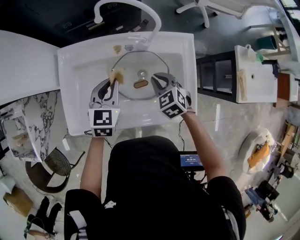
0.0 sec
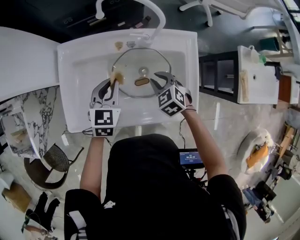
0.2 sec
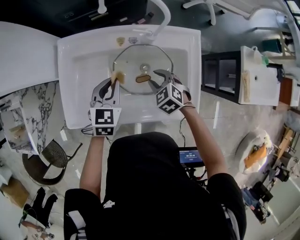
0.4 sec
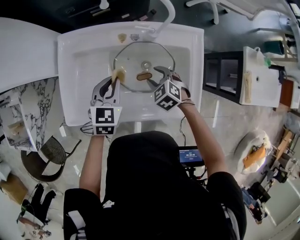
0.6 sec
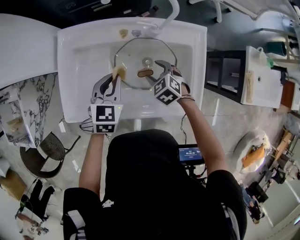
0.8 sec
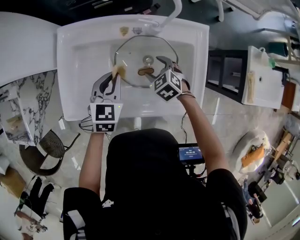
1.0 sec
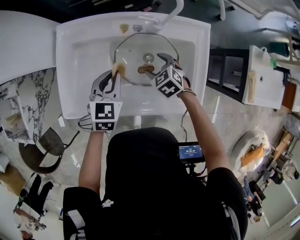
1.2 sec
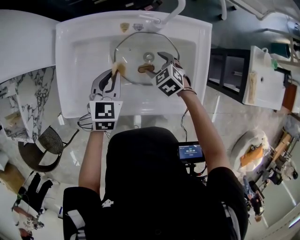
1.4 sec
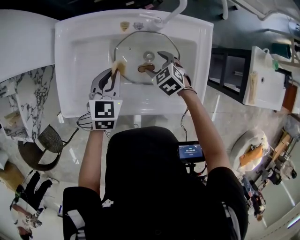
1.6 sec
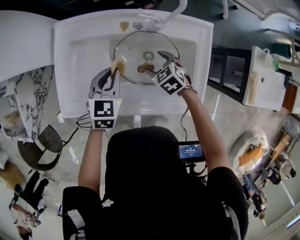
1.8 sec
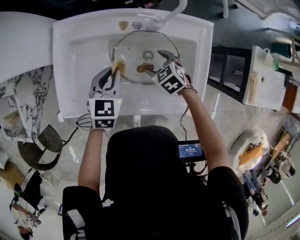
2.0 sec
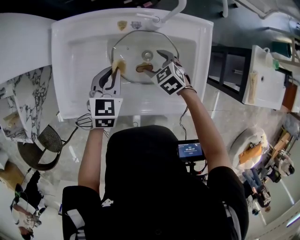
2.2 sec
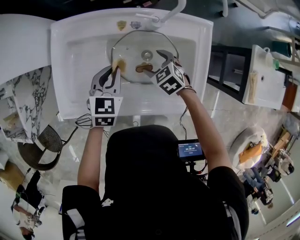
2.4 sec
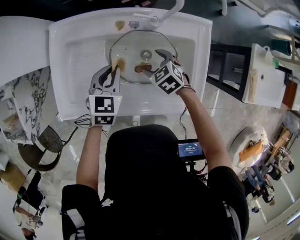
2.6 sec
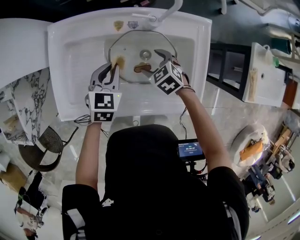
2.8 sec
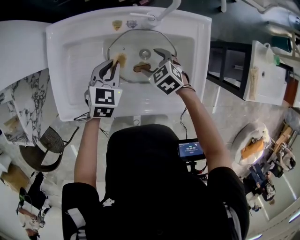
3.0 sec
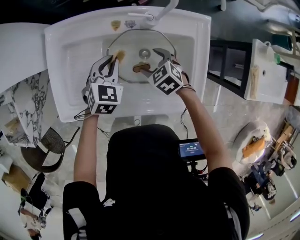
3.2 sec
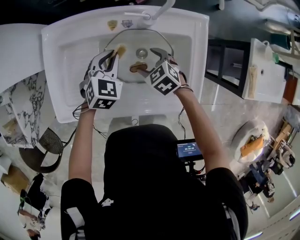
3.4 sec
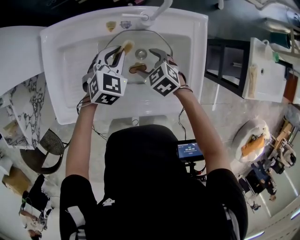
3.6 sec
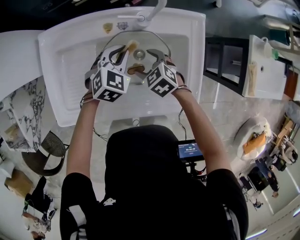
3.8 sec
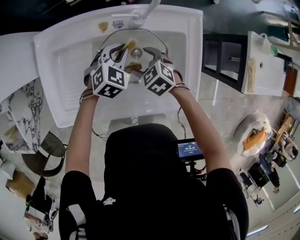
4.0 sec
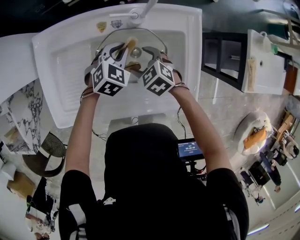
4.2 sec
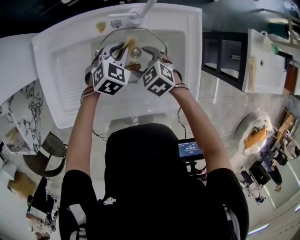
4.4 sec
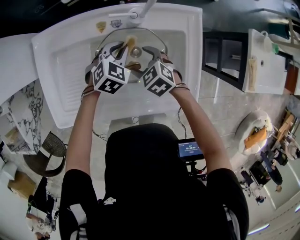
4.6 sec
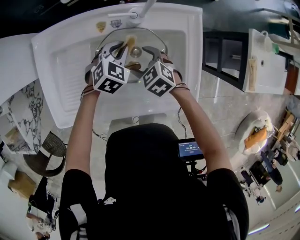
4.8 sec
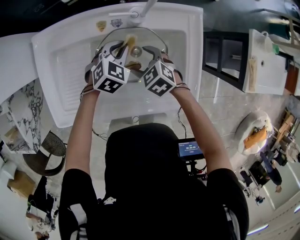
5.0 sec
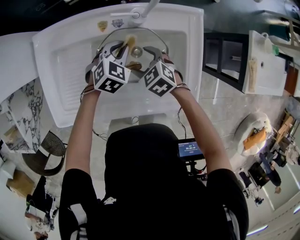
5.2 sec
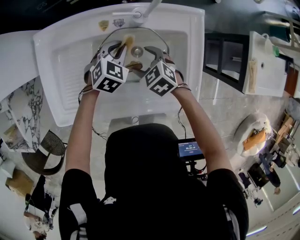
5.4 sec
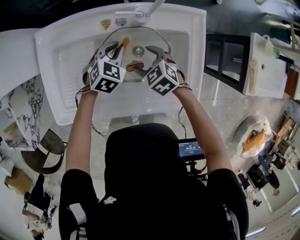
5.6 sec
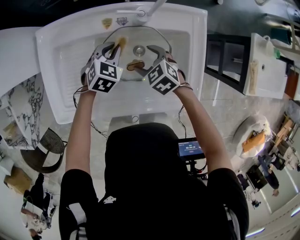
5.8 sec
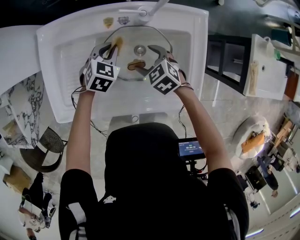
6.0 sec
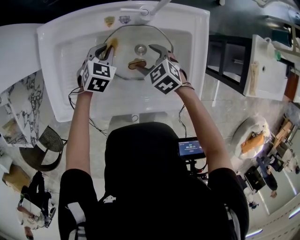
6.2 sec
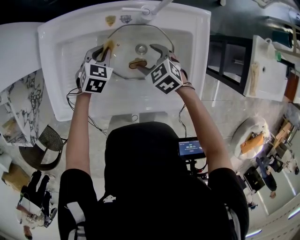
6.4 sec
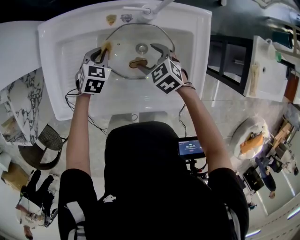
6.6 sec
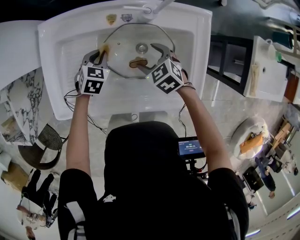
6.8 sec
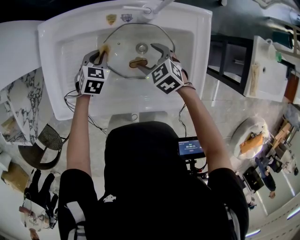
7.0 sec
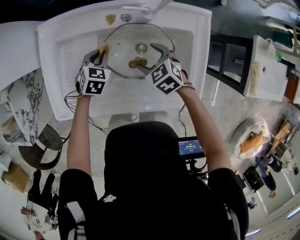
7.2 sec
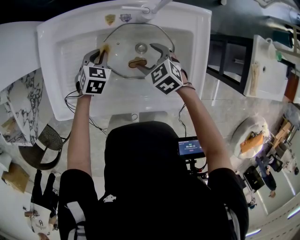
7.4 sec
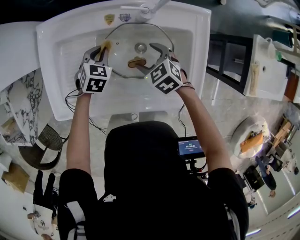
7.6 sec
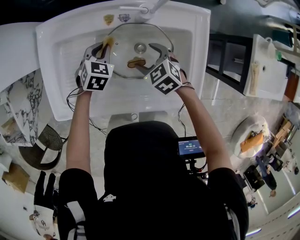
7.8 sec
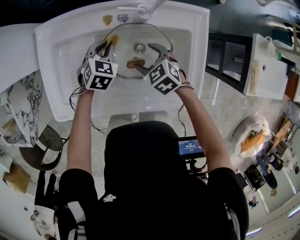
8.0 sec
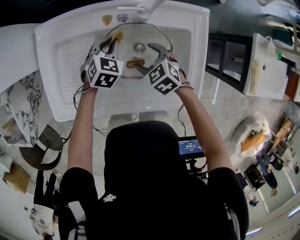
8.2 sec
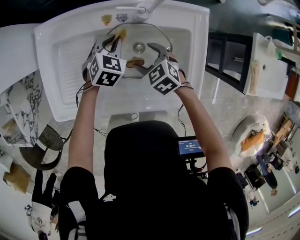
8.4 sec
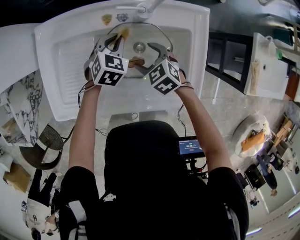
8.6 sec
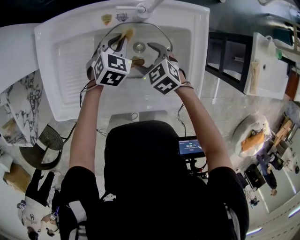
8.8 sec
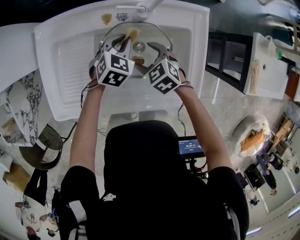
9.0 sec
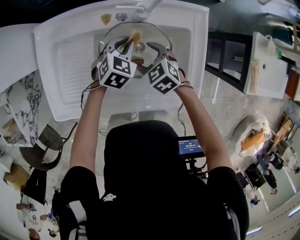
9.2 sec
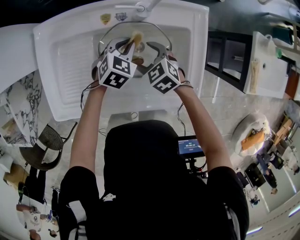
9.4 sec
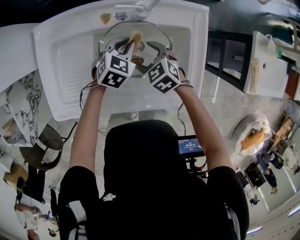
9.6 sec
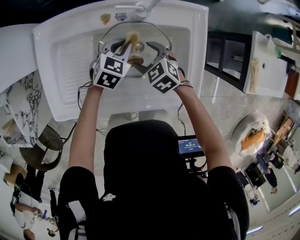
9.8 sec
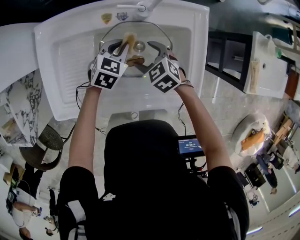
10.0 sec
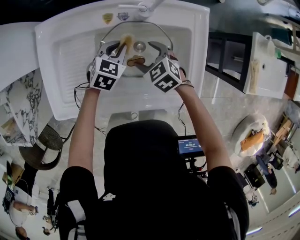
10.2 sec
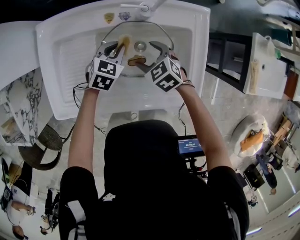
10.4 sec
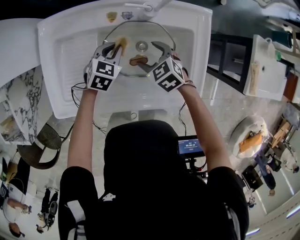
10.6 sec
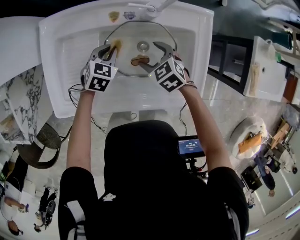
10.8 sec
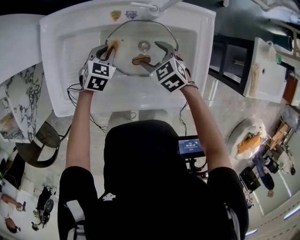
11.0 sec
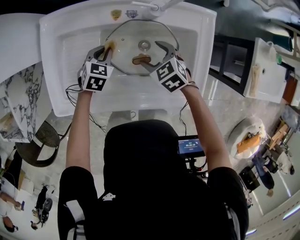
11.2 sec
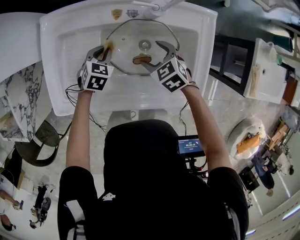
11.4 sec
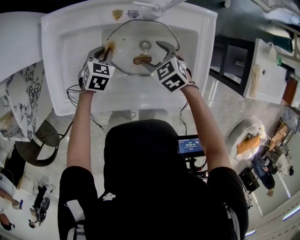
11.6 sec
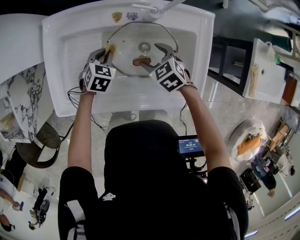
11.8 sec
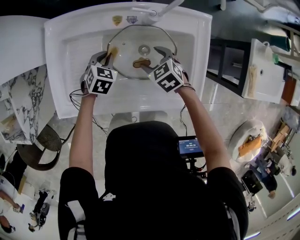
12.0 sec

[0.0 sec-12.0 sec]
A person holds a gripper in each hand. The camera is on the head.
0.0 sec to 1.6 sec: The right gripper goes roughly 10 cm downward, and opens. The left gripper shifts some 5 cm downward.
1.6 sec to 3.0 sec: The left gripper changes place by about 5 cm.
3.0 sec to 4.4 sec: The left gripper shifts about 10 cm to the right, and turns by roughly 20 degrees.
4.4 sec to 6.0 sec: The left gripper moves to the left, about 5 cm.
6.0 sec to 7.6 sec: The left gripper is displaced to the left by some 5 cm.
7.6 sec to 9.0 sec: The left gripper shifts about 10 cm to the right.
9.0 sec to 10.4 sec: There are only small adjustments of the grippers.
10.4 sec to 12.0 sec: The left gripper travels to the left by approximately 10 cm.

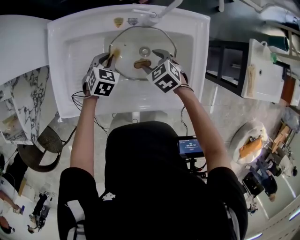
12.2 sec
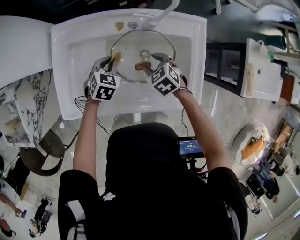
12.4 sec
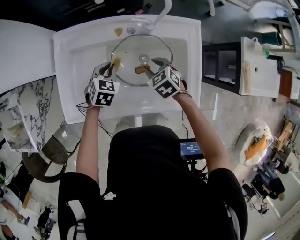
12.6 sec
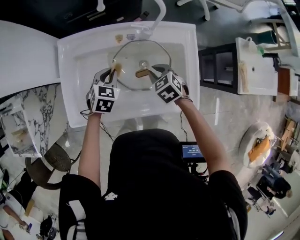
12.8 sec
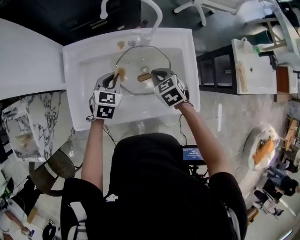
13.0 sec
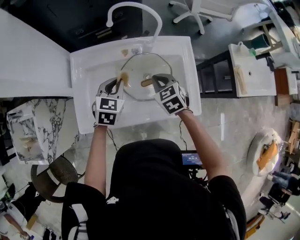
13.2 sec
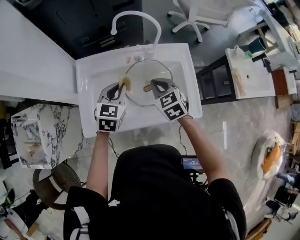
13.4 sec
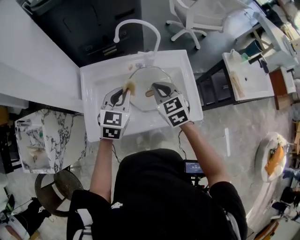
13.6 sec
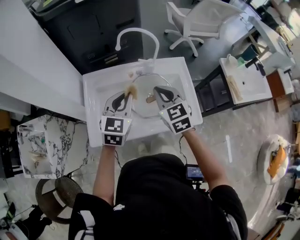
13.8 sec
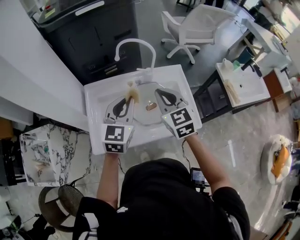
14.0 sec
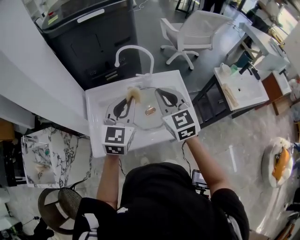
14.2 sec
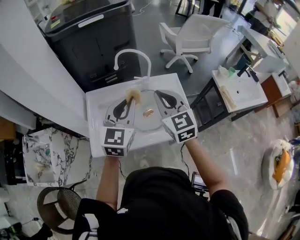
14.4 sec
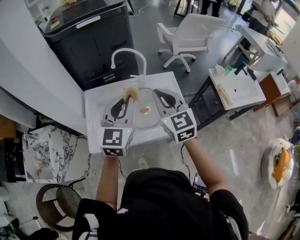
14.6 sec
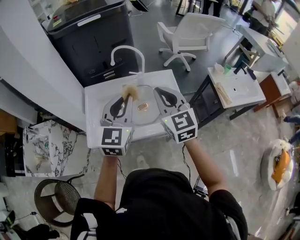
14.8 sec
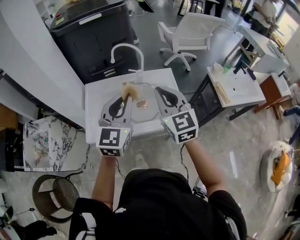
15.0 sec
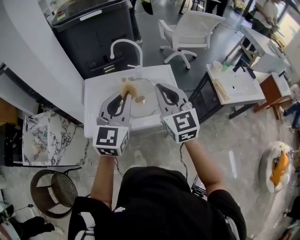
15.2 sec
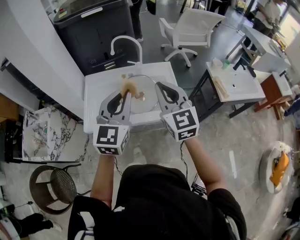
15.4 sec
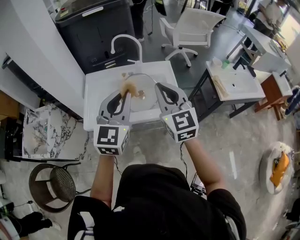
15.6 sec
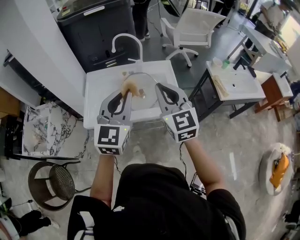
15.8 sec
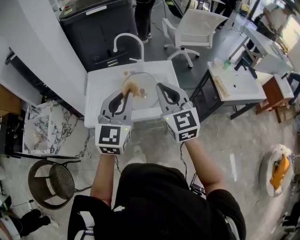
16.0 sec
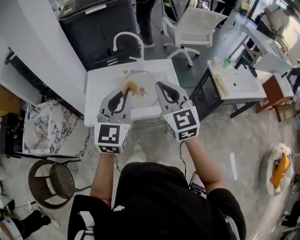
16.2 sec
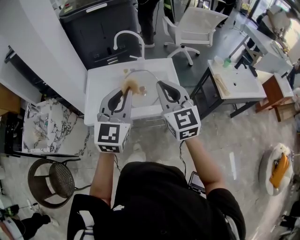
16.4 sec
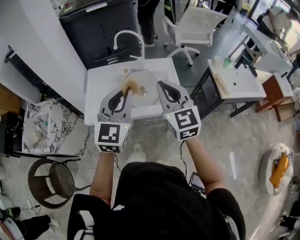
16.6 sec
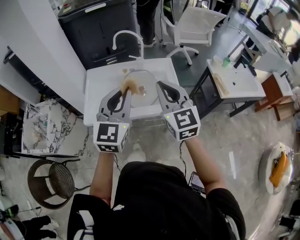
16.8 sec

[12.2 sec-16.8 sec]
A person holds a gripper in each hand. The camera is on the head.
12.2 sec to 13.8 sec: The grippers both shift upward by approximately 30 cm. The left gripper tilts its fingers roughly 40 degrees upward, while the right gripper tips its fingers upward by roughly 40 degrees, and closes its fingers.
13.8 sec to 15.2 sec: Both grippers move upward, backward and to the right, approximately 25 cm. The right gripper rotates approximately 20 degrees.
15.2 sec to 16.8 sec: Both grippers travel together backward, about 5 cm.

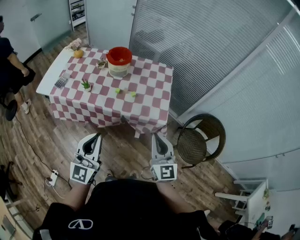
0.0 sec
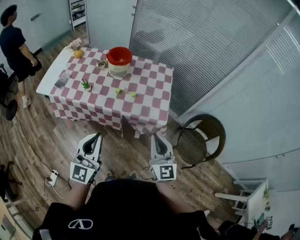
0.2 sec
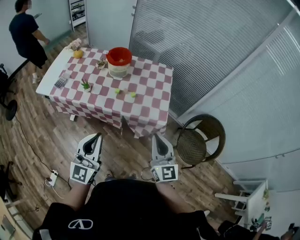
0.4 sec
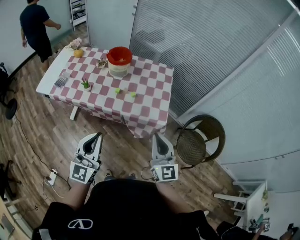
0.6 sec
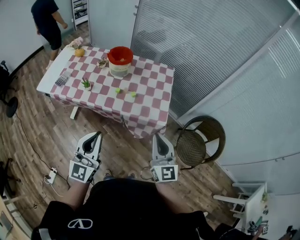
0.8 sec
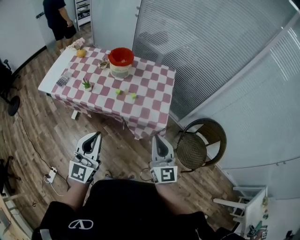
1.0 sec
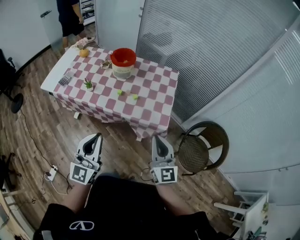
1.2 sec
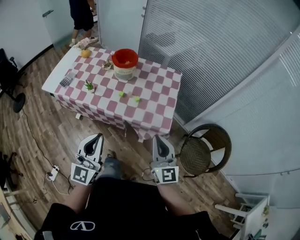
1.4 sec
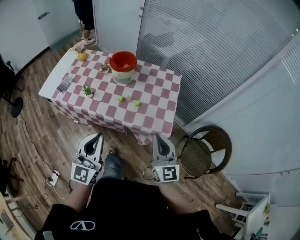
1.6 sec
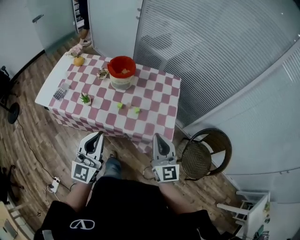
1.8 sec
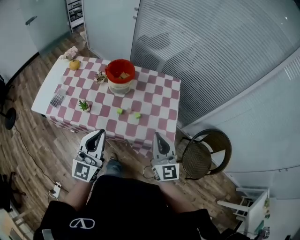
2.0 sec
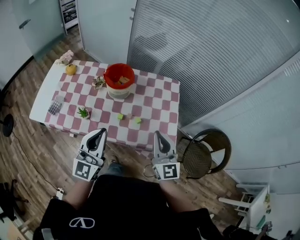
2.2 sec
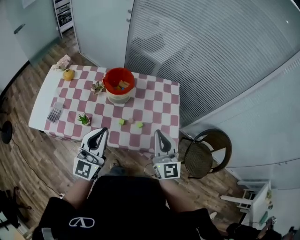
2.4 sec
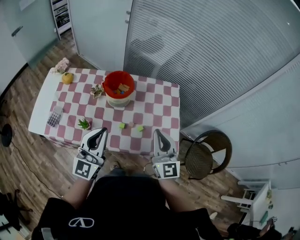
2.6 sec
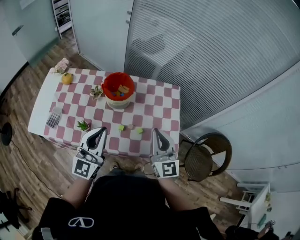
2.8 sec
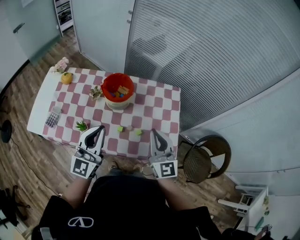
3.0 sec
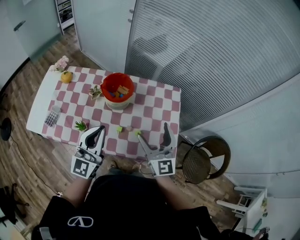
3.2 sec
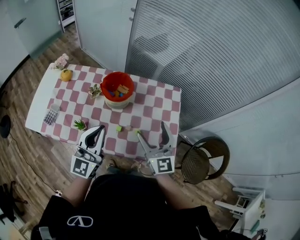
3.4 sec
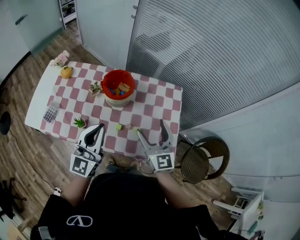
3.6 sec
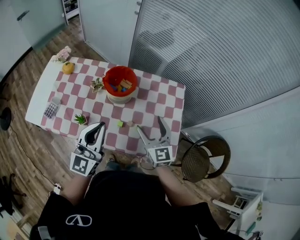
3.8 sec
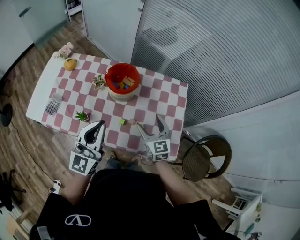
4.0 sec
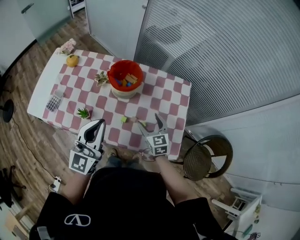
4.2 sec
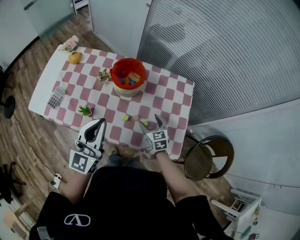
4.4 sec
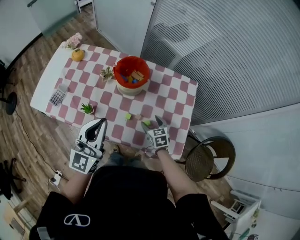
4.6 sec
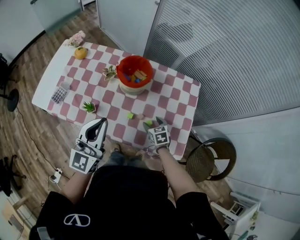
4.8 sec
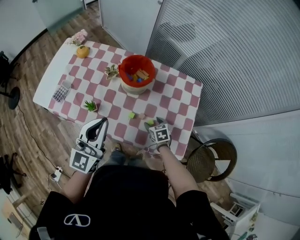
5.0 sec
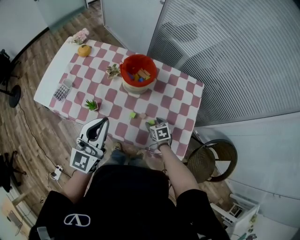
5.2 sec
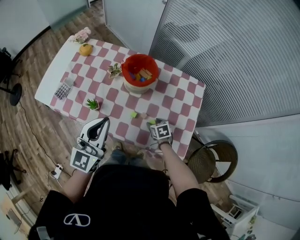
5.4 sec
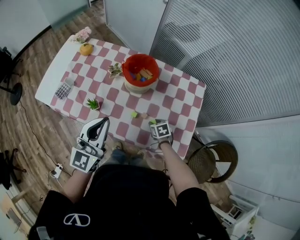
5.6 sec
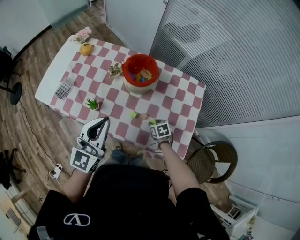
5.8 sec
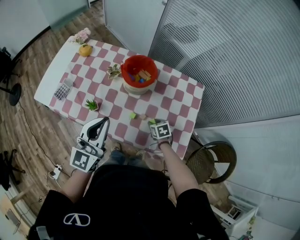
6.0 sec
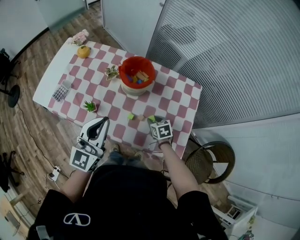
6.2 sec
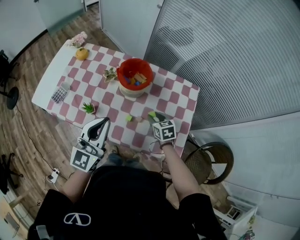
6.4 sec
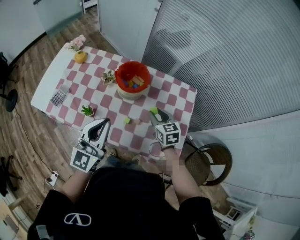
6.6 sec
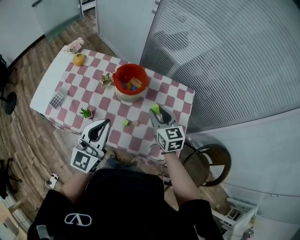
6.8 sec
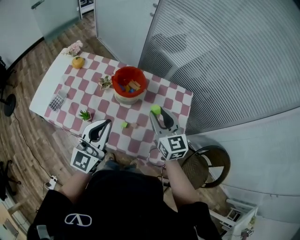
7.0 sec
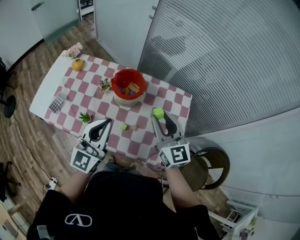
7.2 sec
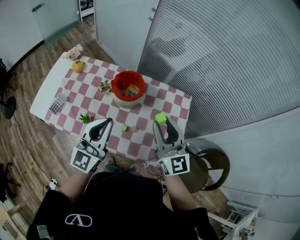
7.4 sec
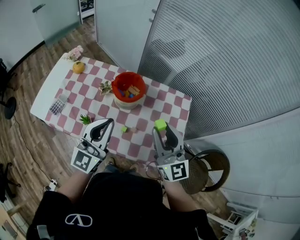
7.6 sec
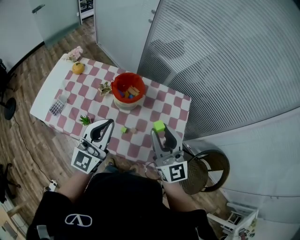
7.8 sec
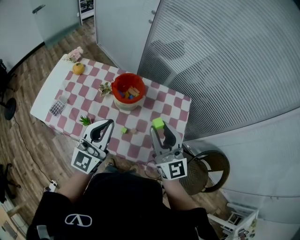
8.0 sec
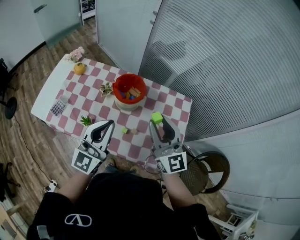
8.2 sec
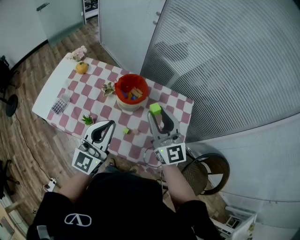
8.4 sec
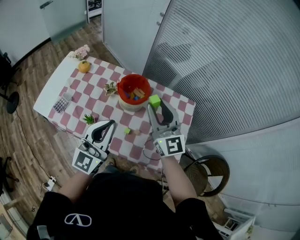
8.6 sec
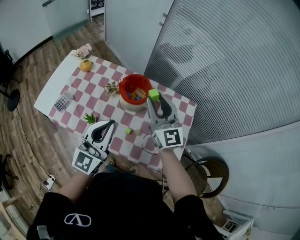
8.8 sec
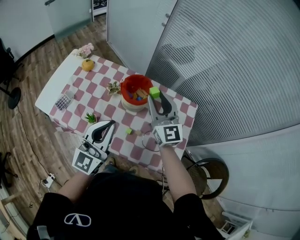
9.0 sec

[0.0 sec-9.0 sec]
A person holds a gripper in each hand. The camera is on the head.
0.0 sec to 1.6 sec: Both grippers move forward, approximately 10 cm.
1.6 sec to 3.0 sec: The left gripper moves forward, approximately 25 cm, while the right gripper travels forward and to the left by about 25 cm.
3.0 sec to 4.4 sec: The right gripper shifts approximately 25 cm downward, points its fingers some 40 degrees further downward, and opens.
4.4 sec to 6.0 sec: The right gripper is displaced downward by approximately 10 cm, changes its angle by some 30 degrees, and closes its fingers.
6.0 sec to 7.6 sec: The left gripper goes about 5 cm upward. Meanwhile the right gripper goes some 40 cm upward, and points its fingers about 70 degrees further upward.
7.6 sec to 9.0 sec: The right gripper travels forward and to the left by approximately 15 cm.
